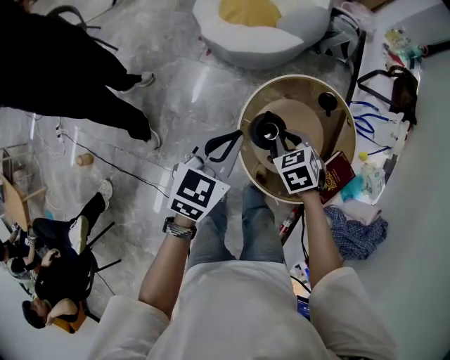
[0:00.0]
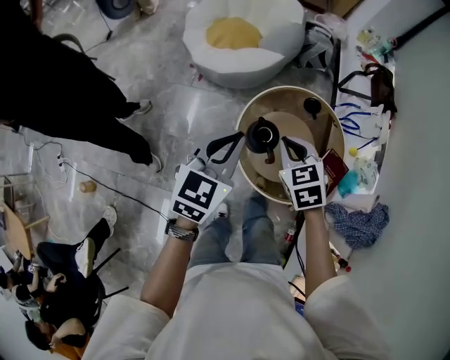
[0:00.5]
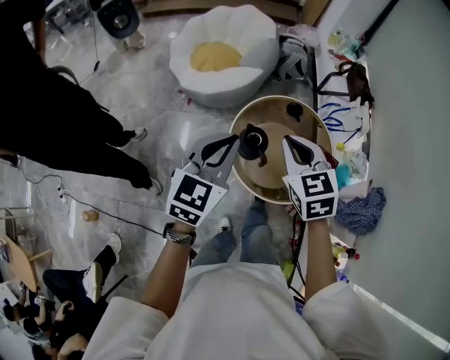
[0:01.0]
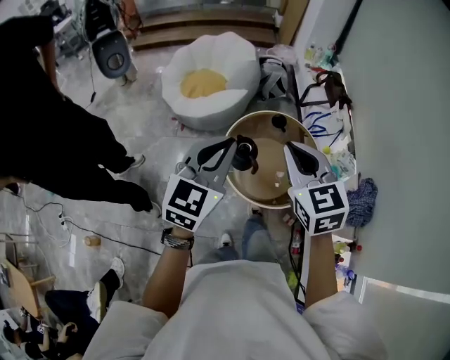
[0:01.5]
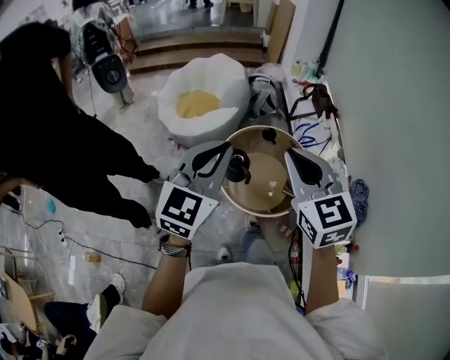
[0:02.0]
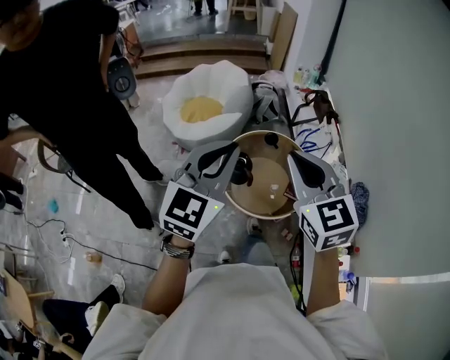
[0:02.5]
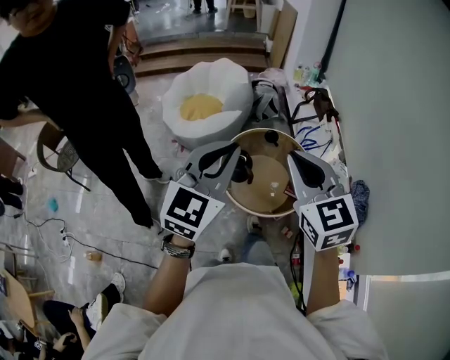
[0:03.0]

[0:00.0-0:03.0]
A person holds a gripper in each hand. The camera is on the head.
0:00.0 to 0:01.5: Both grippers travel together upward and backward, some 35 cm. The left gripper turns by some 30 degrees; the right gripper points its fingers some 40 degrees further upward.
0:01.5 to 0:03.0: The grippers both shift backward and upward by roughly 15 cm.

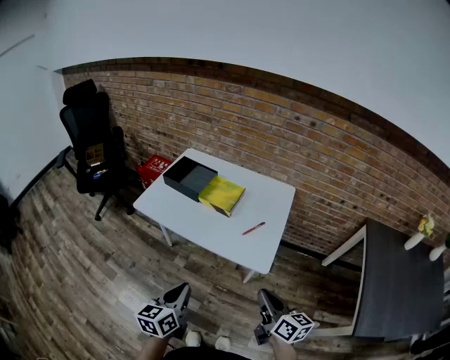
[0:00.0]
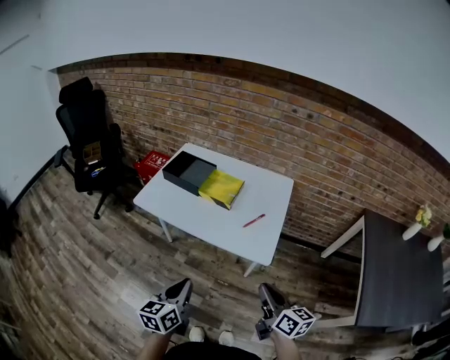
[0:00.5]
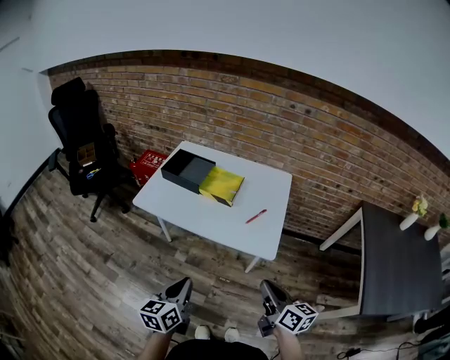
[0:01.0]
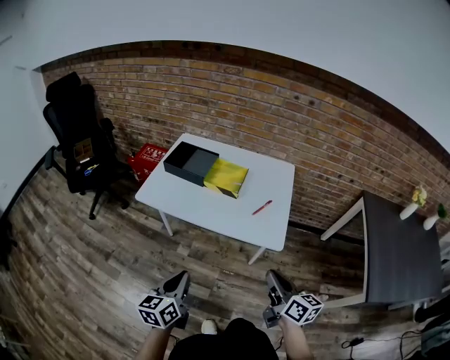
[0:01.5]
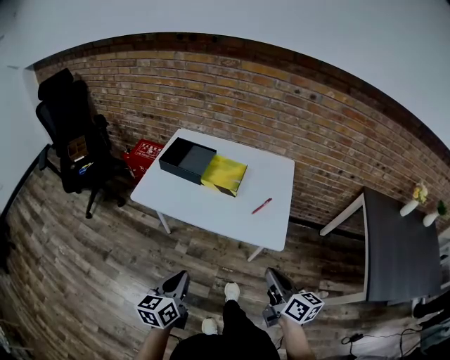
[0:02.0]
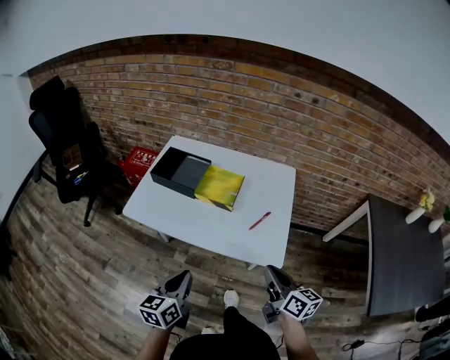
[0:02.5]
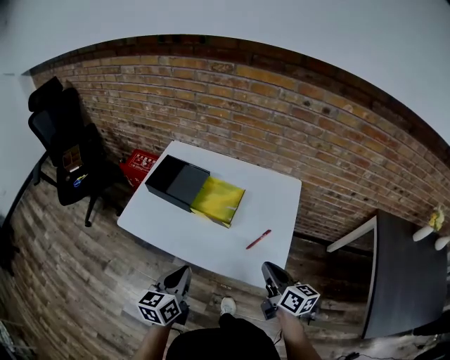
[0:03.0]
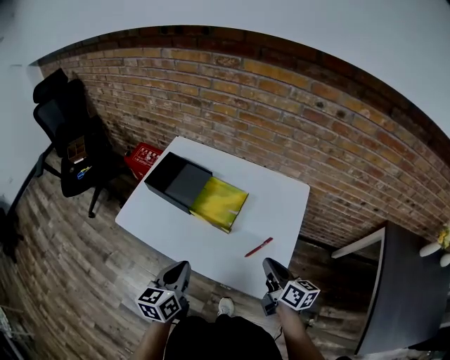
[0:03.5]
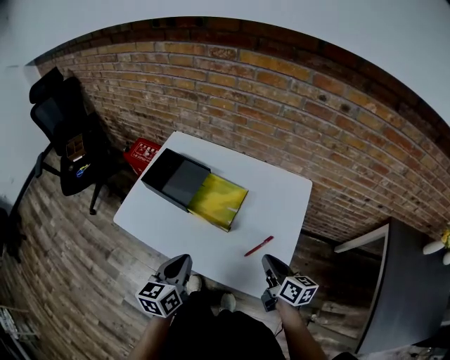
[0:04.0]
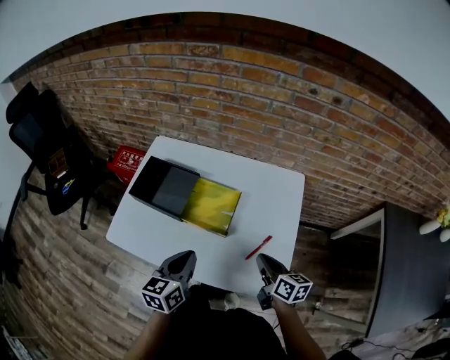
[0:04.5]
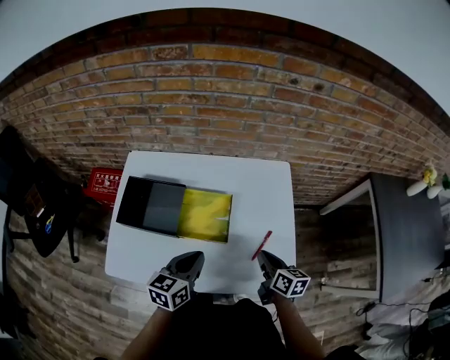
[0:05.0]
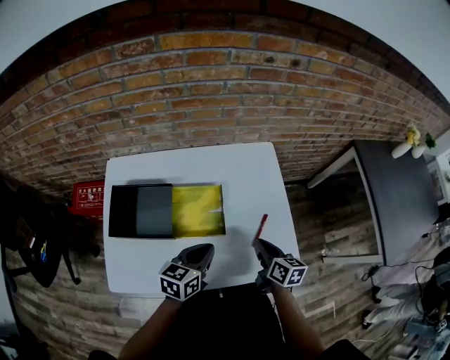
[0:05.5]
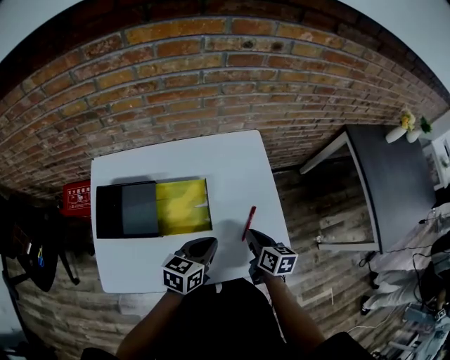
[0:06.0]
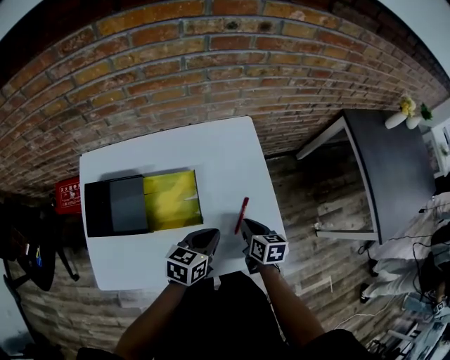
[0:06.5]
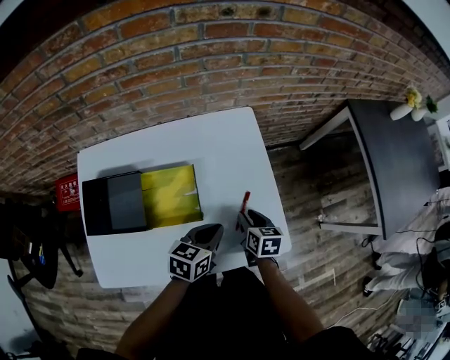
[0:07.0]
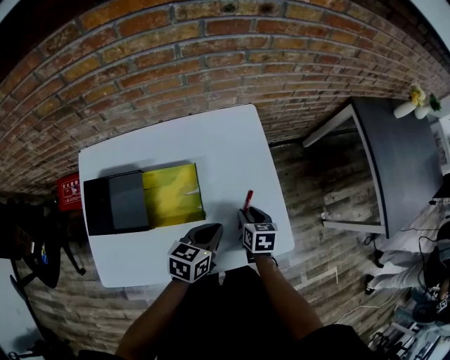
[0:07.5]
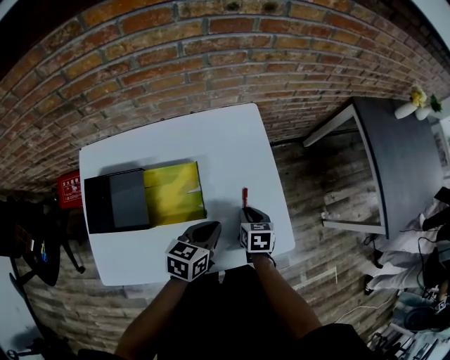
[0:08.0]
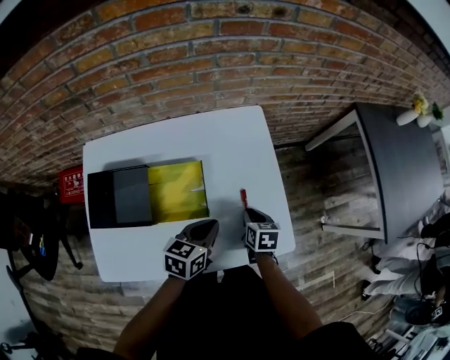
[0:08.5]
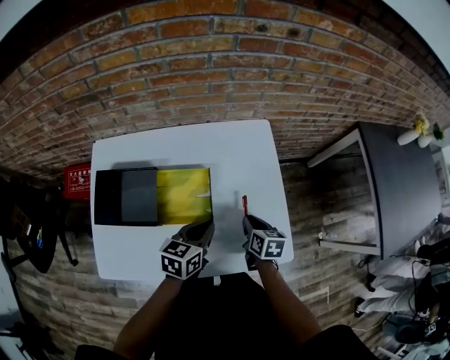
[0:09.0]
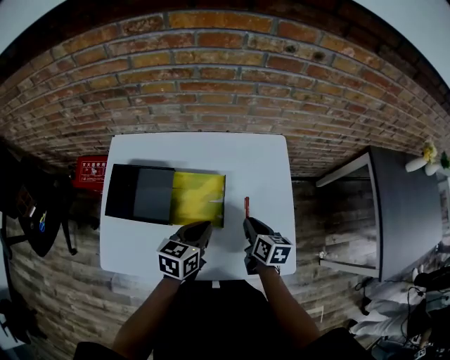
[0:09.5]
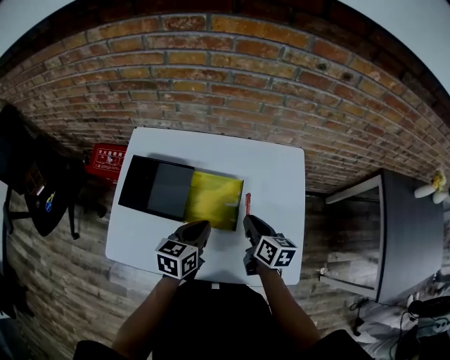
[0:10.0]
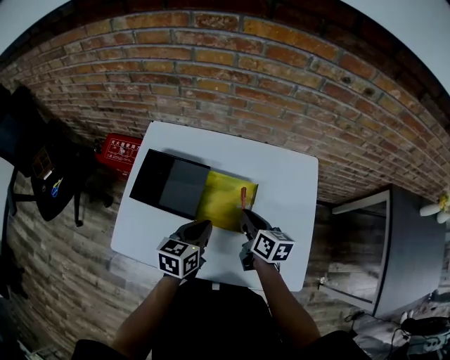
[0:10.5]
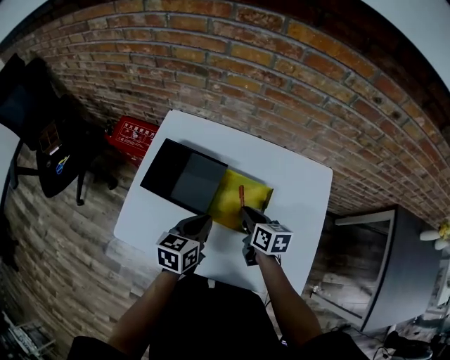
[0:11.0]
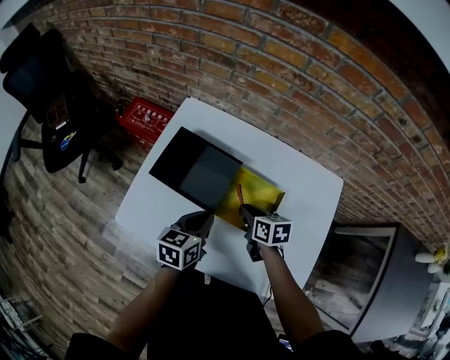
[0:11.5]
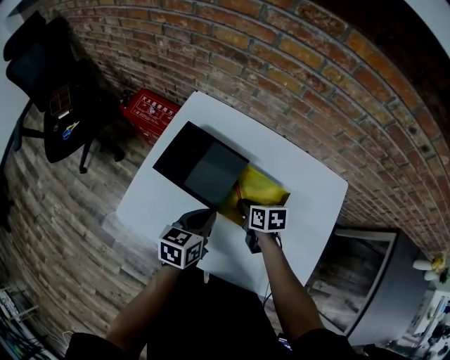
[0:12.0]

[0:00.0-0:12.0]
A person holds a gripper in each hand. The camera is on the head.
0:00.0 to 0:02.0: Both grippers move to the left, some 10 cm.
0:02.0 to 0:04.0: The two grippers go roughly 25 cm forward.
0:04.0 to 0:06.0: The right gripper travels downward by some 10 cm, and swivels some 40 degrees, while the left gripper ends up about 15 cm from where it was, and swivels some 50 degrees.
0:06.0 to 0:08.0: The right gripper heads downward, covering about 5 cm, and swivels some 30 degrees; the left gripper moves some 5 cm.
0:08.0 to 0:10.0: The right gripper shifts by some 15 cm, and changes its angle by about 30 degrees; the left gripper changes place by approximately 15 cm, and swivels approximately 20 degrees.
0:10.0 to 0:12.0: The left gripper ends up about 10 cm from where it was. Meanwhile the right gripper ends up roughly 20 cm from where it was, and rotates about 40 degrees.

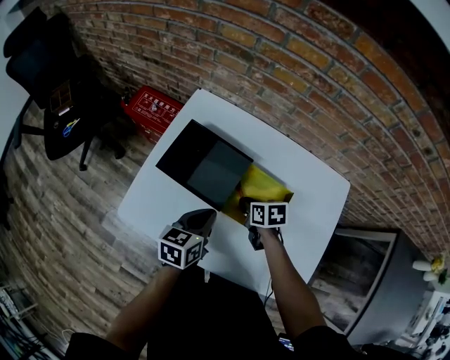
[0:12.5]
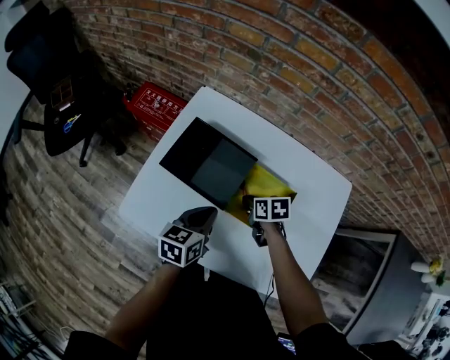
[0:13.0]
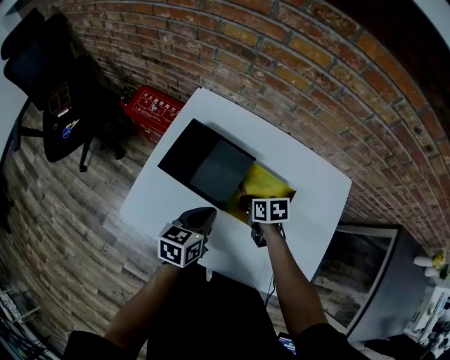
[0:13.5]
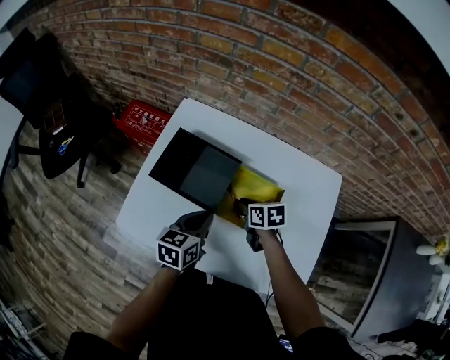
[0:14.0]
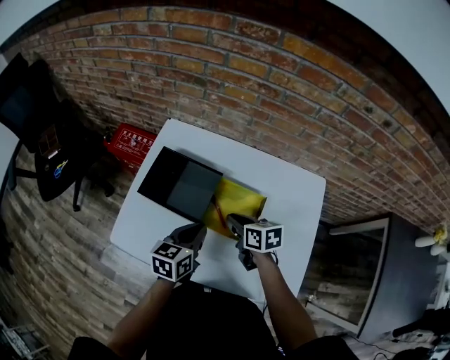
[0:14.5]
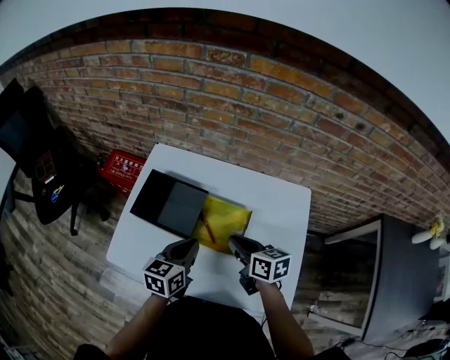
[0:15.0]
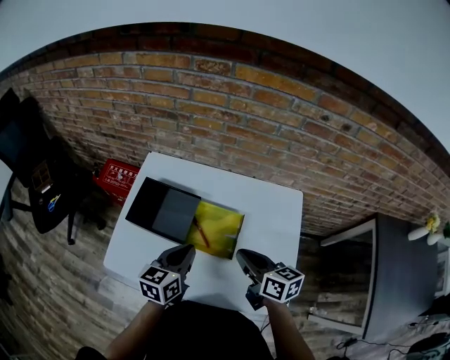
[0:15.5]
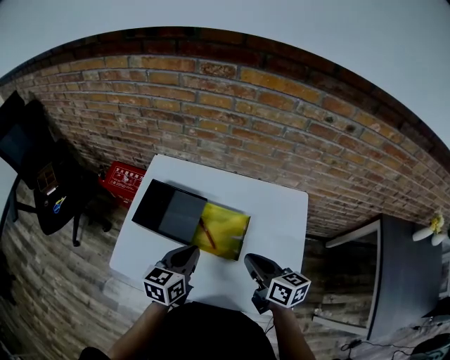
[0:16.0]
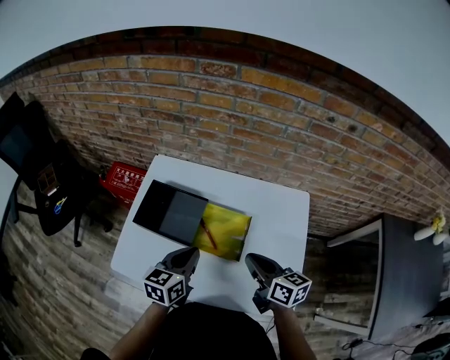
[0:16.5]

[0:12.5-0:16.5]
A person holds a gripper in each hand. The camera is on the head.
0:12.5 to 0:14.5: The right gripper goes some 10 cm upward; the left gripper moves some 5 cm.
0:14.5 to 0:16.5: The right gripper goes about 15 cm upward, to the right and backward, and rotates some 20 degrees. The left gripper goes roughly 5 cm upward.

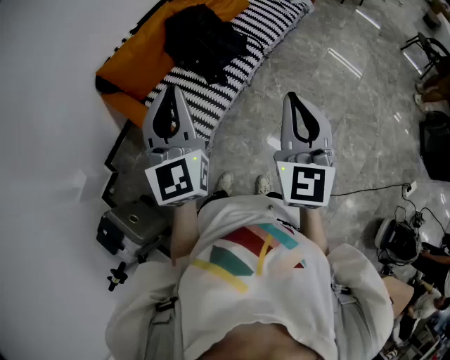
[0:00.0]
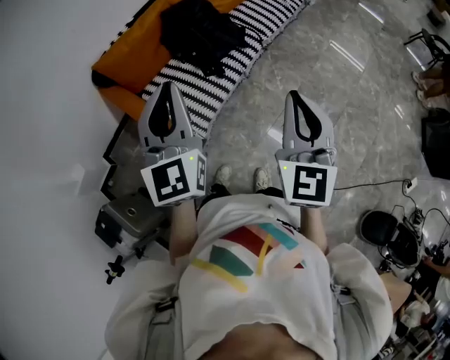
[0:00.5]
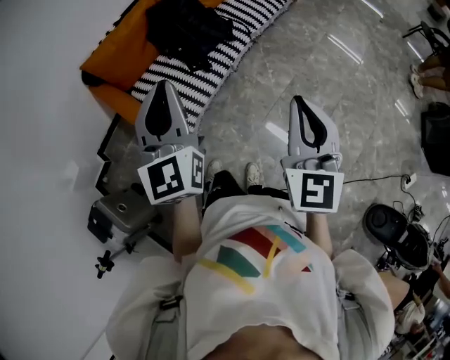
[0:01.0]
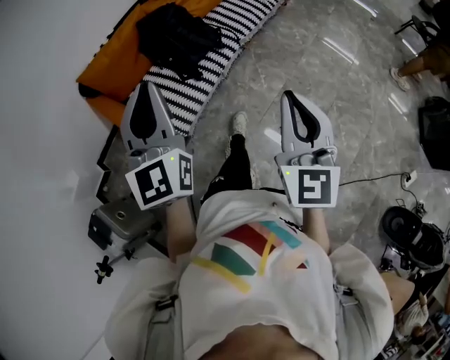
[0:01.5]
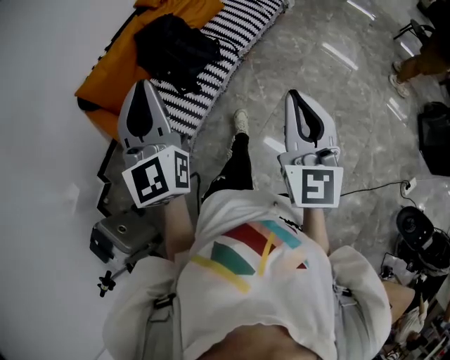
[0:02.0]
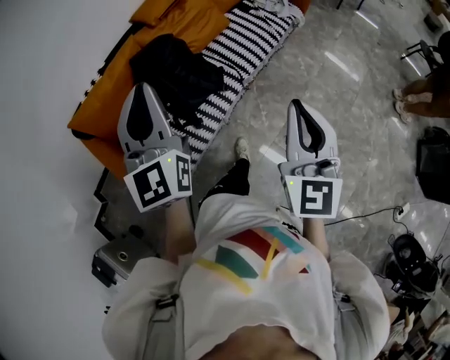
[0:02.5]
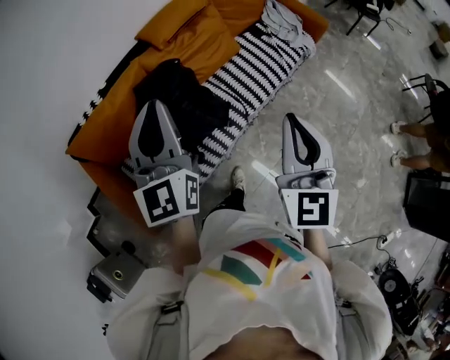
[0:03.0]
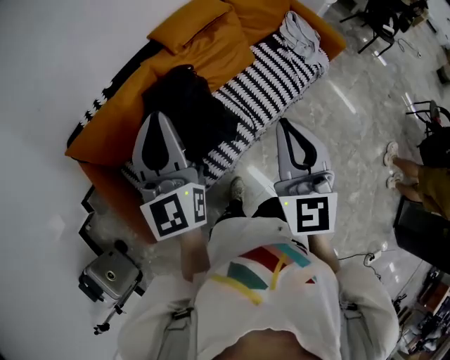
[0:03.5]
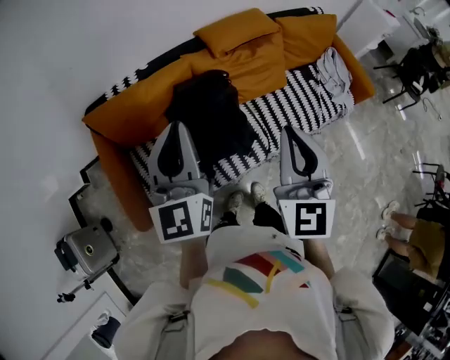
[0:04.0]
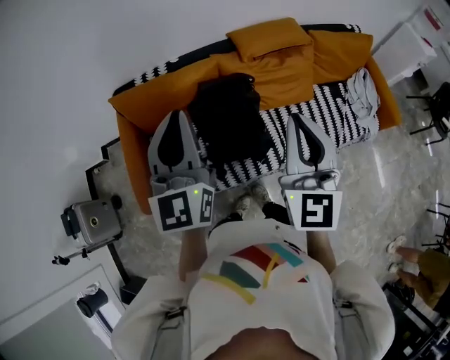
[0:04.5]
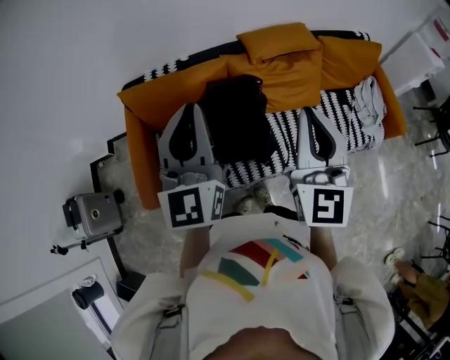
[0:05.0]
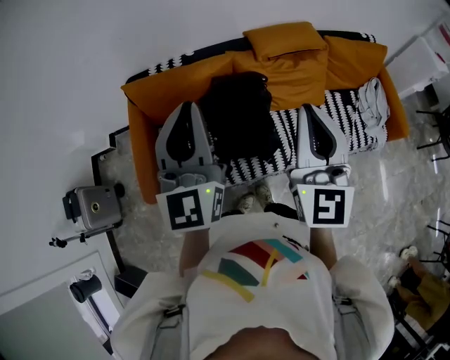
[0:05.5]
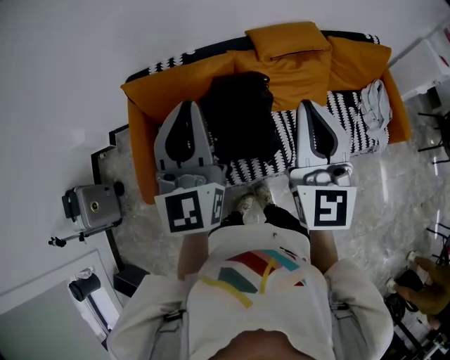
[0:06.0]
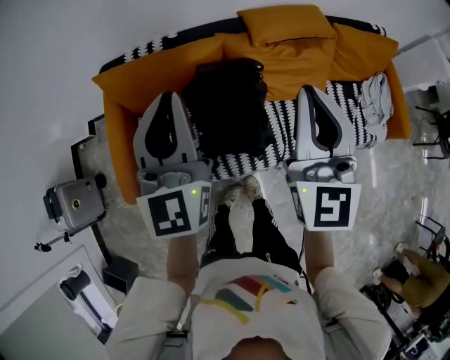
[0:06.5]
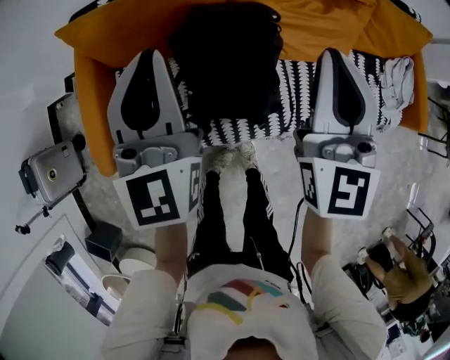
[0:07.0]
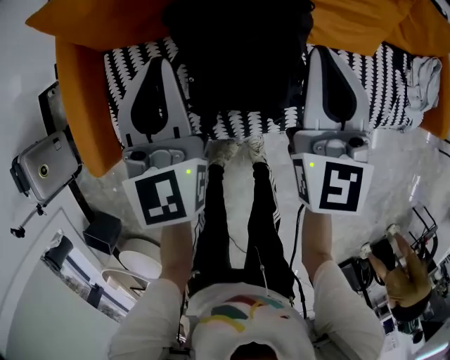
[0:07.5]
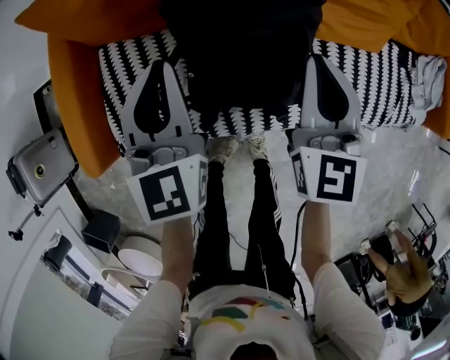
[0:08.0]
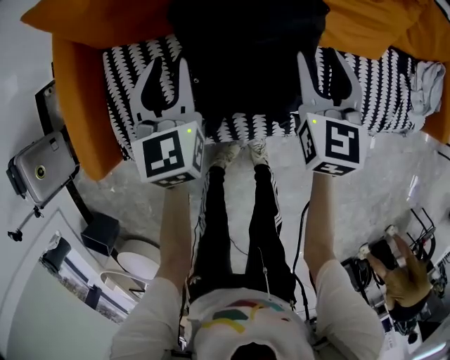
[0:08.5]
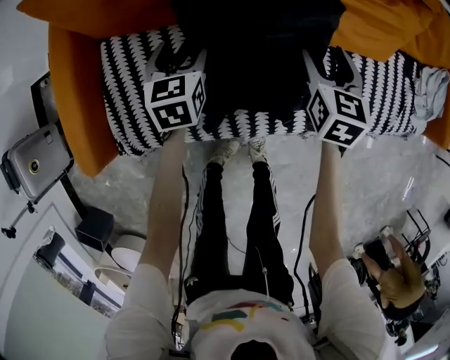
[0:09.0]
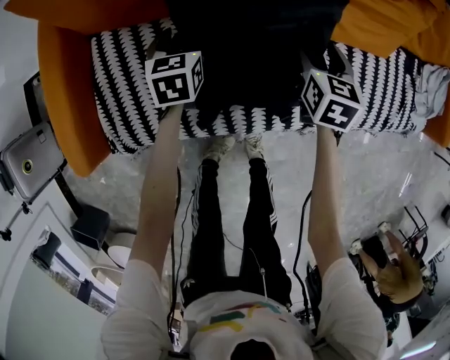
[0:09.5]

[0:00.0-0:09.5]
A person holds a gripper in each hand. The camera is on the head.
0:00.0 to 0:02.0: Both grippers travel together to the right, about 15 cm.
0:02.0 to 0:04.0: Both grippers move forward, approximately 40 cm. The right gripper rotates about 30 degrees. Meanwhile the left gripper turns by approximately 20 degrees.
0:04.0 to 0:05.5: The two grippers go some 5 cm upward.
0:05.5 to 0:07.5: The right gripper goes approximately 35 cm downward and forward. The left gripper goes about 35 cm downward, and swivels some 20 degrees.
0:07.5 to 0:09.5: Both grippers move downward, approximately 30 cm. The right gripper points its fingers approximately 30 degrees further downward, and opens up. Meanwhile the left gripper tips its fingers downward by roughly 30 degrees, and opens.
